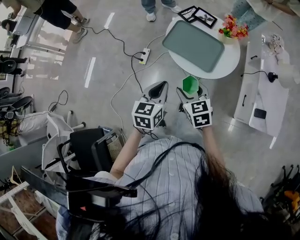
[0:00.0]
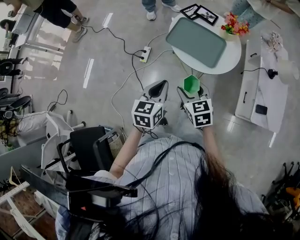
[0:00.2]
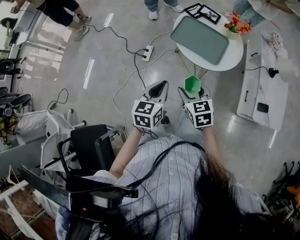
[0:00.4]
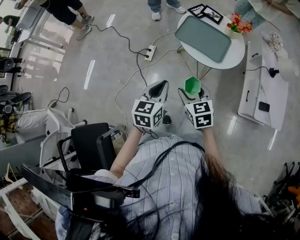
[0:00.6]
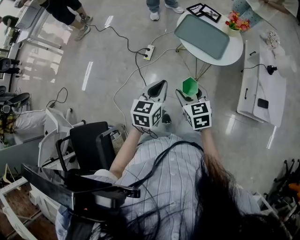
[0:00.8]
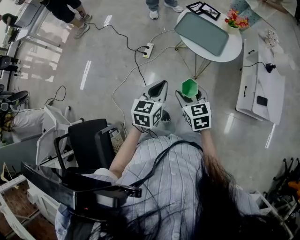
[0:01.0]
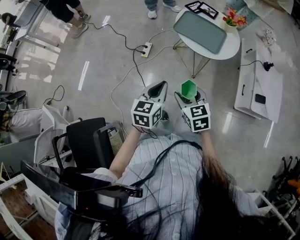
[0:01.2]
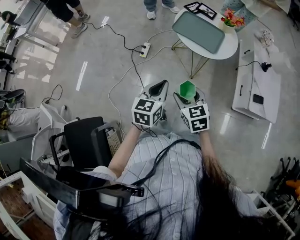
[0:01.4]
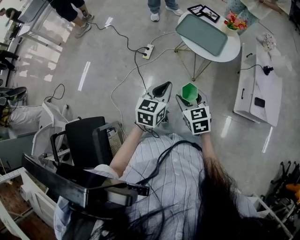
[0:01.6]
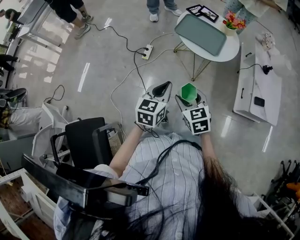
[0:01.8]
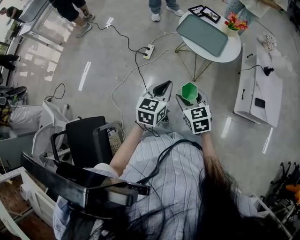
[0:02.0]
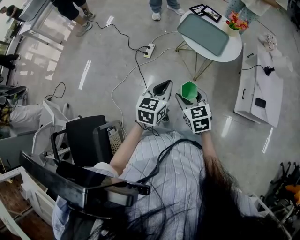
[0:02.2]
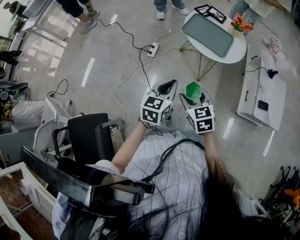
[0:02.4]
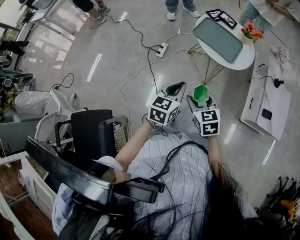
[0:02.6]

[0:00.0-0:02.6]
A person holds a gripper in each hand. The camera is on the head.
0:00.0 to 0:01.2: The two grippers go roughly 20 cm backward and to the left.
0:01.2 to 0:02.6: The grippers make only small movements.

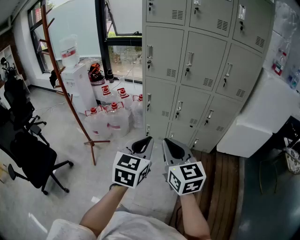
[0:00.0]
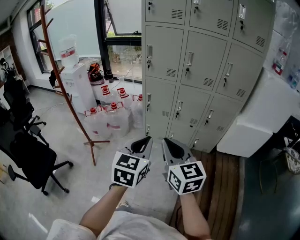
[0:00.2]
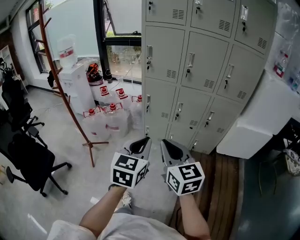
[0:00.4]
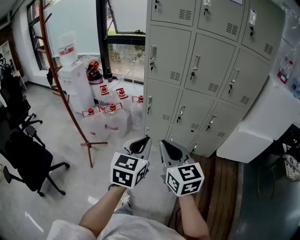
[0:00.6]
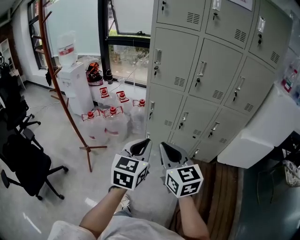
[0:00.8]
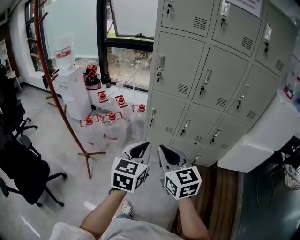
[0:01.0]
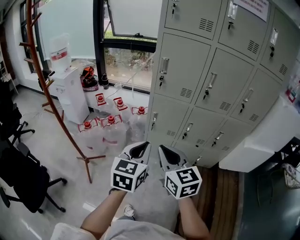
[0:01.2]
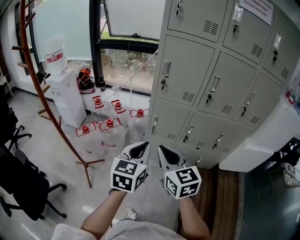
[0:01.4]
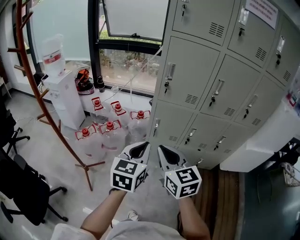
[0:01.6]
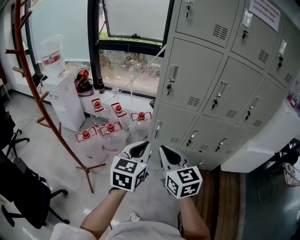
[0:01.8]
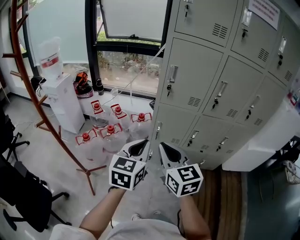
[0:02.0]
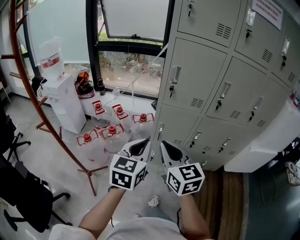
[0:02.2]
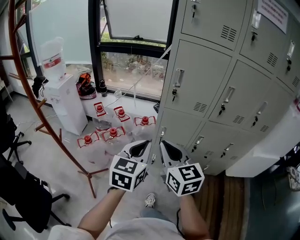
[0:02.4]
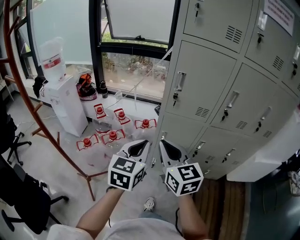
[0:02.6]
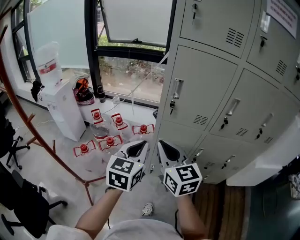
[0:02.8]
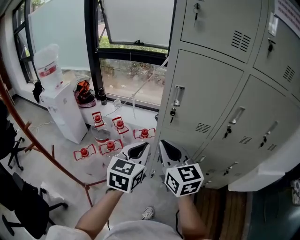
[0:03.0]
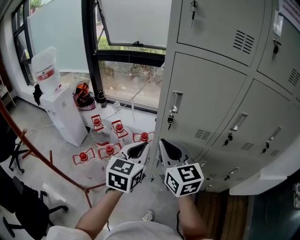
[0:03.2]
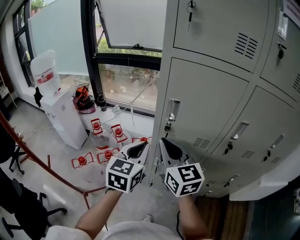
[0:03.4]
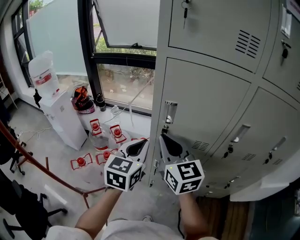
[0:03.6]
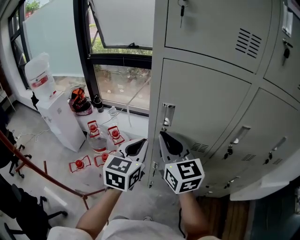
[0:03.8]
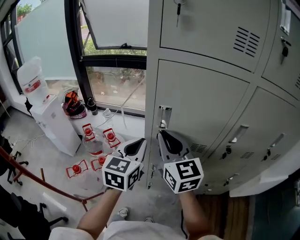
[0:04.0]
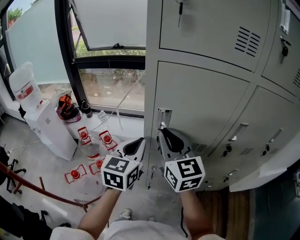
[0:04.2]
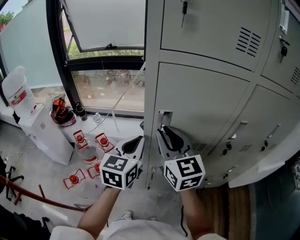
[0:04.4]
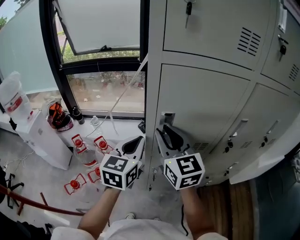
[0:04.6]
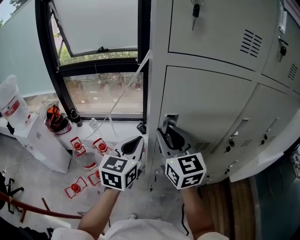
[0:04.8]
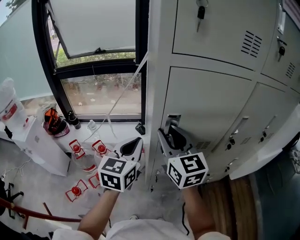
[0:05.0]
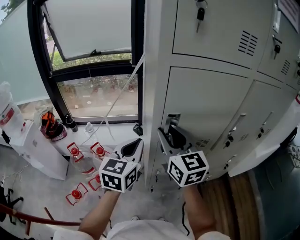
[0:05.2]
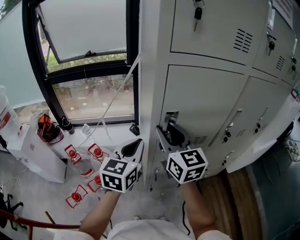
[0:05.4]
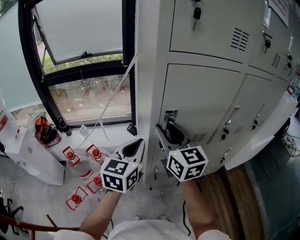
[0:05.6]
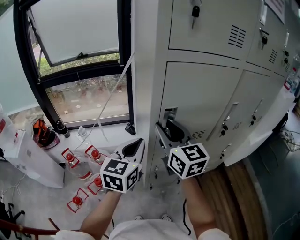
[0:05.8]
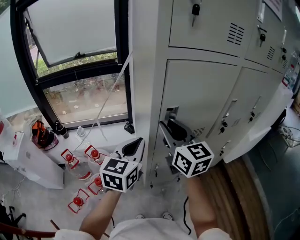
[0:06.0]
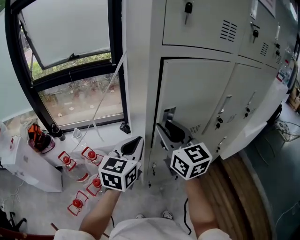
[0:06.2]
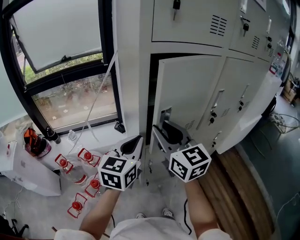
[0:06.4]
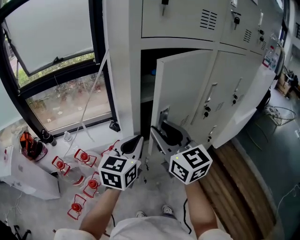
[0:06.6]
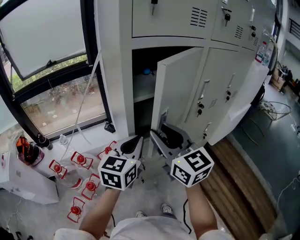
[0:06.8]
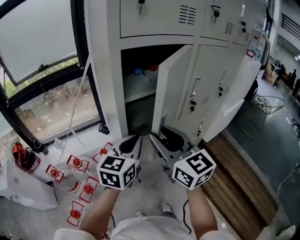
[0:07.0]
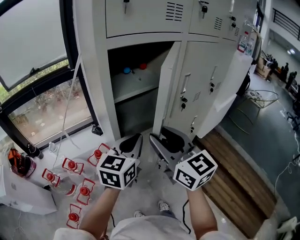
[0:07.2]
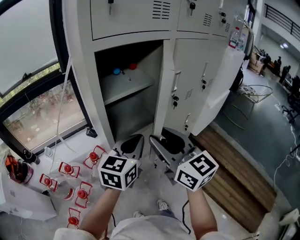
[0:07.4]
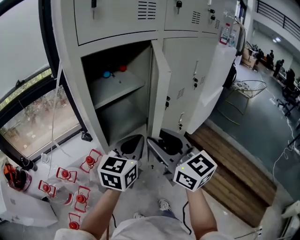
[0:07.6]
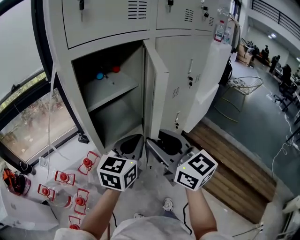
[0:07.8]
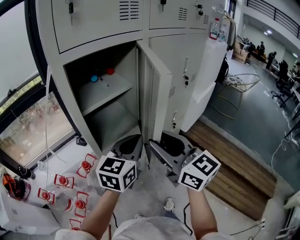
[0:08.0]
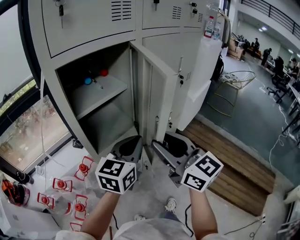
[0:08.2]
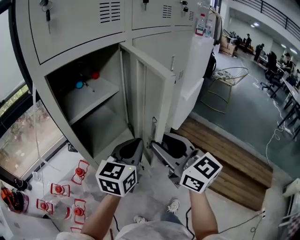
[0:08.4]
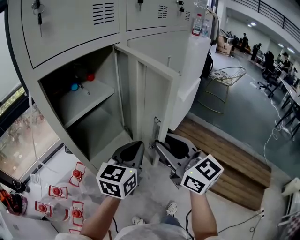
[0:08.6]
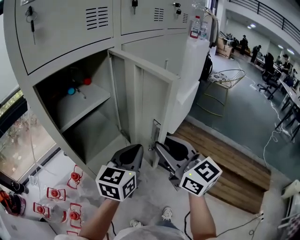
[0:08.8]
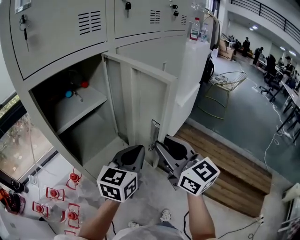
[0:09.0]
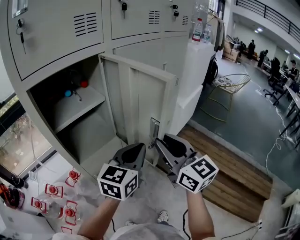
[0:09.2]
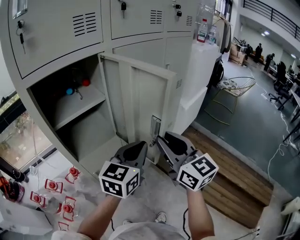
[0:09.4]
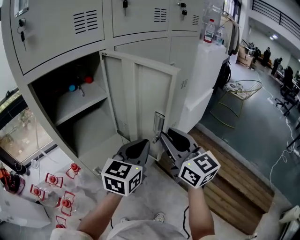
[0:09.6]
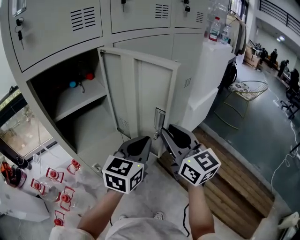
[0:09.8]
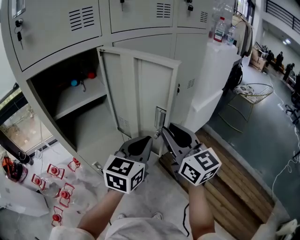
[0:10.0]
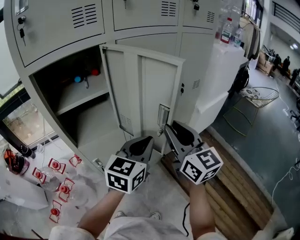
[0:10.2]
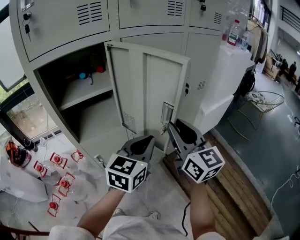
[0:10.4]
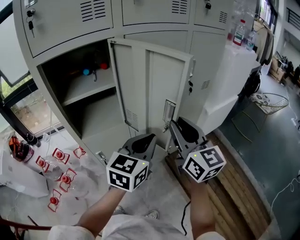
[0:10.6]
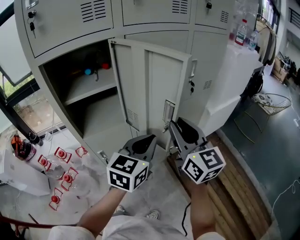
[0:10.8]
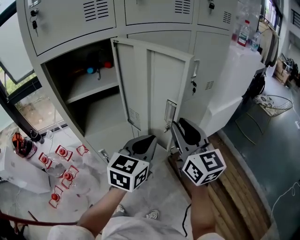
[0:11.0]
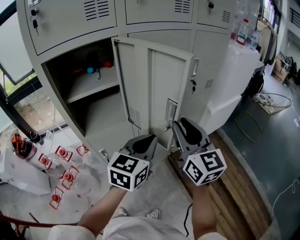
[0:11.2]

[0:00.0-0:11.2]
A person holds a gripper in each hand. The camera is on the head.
0:00.0 to 0:01.6: Both grippers travel together forward and to the left, roughly 35 cm.
0:01.6 to 0:03.2: The two grippers go some 25 cm forward.
0:03.2 to 0:04.8: The grippers both shift forward by some 15 cm.
0:04.8 to 0:06.4: The grippers stay close to where they were, moving slightly.
0:06.4 to 0:08.0: The left gripper travels to the right by some 20 cm, and turns by roughly 30 degrees. The right gripper goes roughly 20 cm to the right and backward.
0:08.0 to 0:09.6: The left gripper shifts some 15 cm to the right; the right gripper heads to the right and forward, covering about 20 cm.
0:09.6 to 0:11.2: The right gripper changes place by some 5 cm.

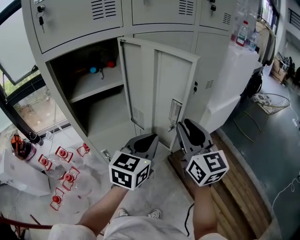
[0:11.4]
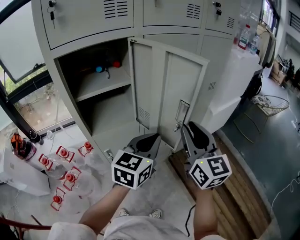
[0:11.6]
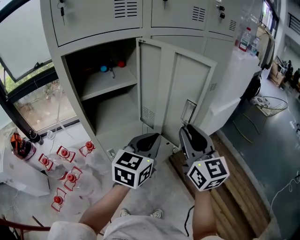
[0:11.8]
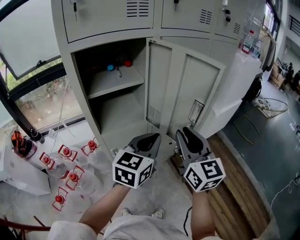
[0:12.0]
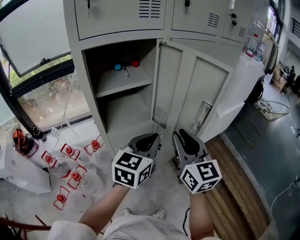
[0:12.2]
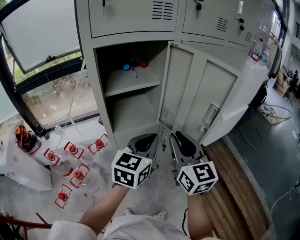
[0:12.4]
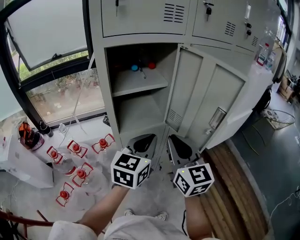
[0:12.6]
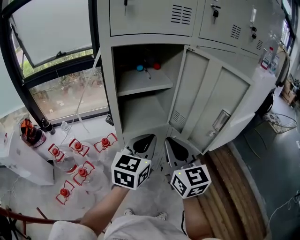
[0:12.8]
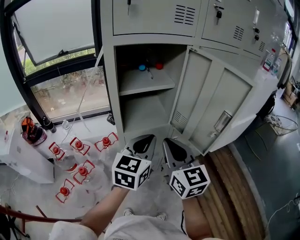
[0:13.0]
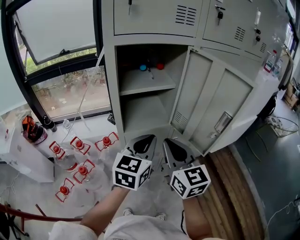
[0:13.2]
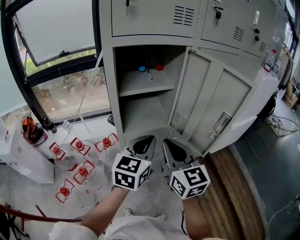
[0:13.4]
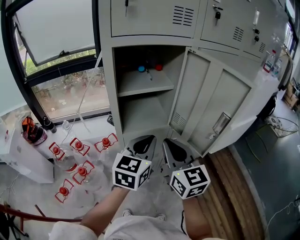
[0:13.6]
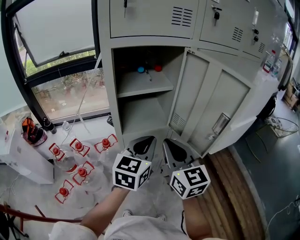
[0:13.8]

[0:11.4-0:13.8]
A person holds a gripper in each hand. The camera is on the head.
0:11.4 to 0:12.6: Both grippers travel together to the left, about 20 cm.
0:12.6 to 0:13.8: There are only small adjustments of the grippers.

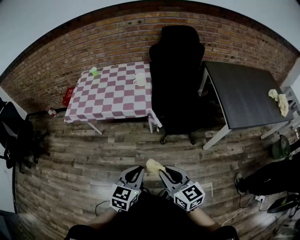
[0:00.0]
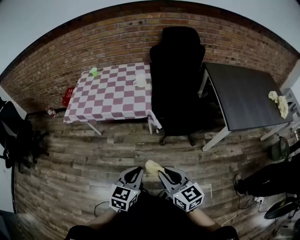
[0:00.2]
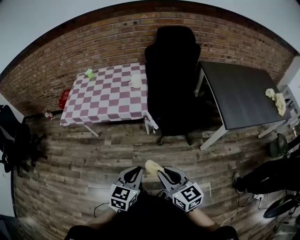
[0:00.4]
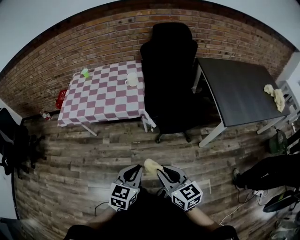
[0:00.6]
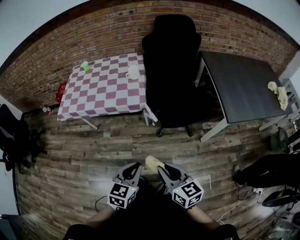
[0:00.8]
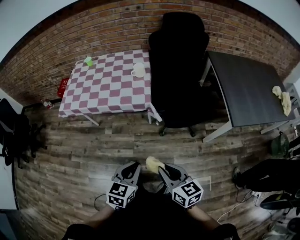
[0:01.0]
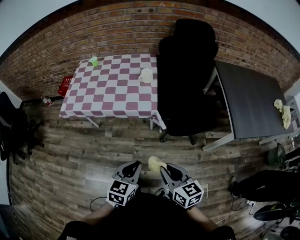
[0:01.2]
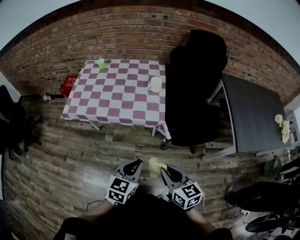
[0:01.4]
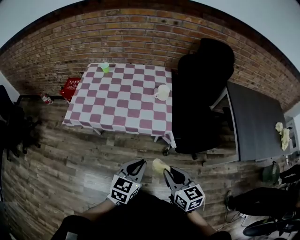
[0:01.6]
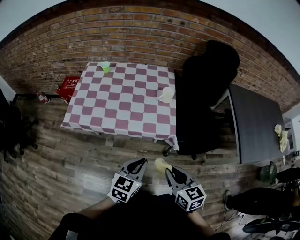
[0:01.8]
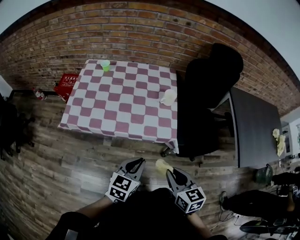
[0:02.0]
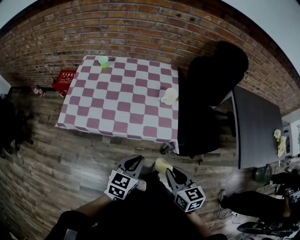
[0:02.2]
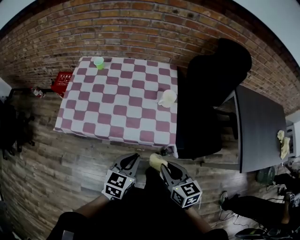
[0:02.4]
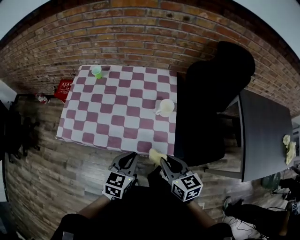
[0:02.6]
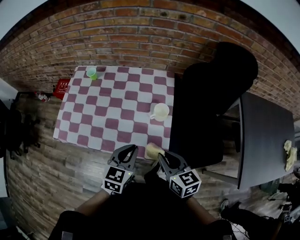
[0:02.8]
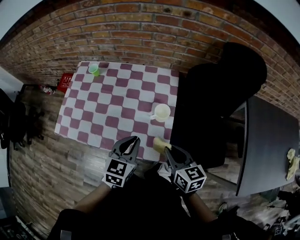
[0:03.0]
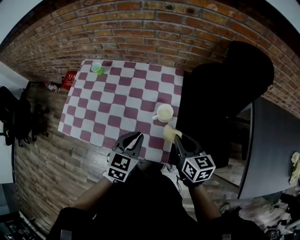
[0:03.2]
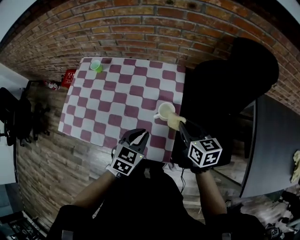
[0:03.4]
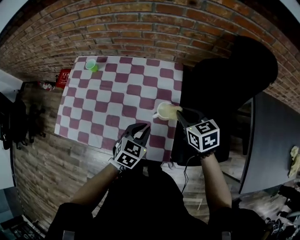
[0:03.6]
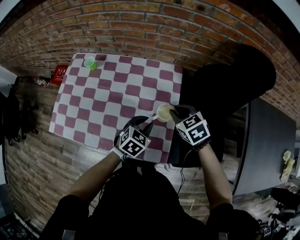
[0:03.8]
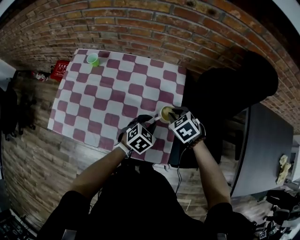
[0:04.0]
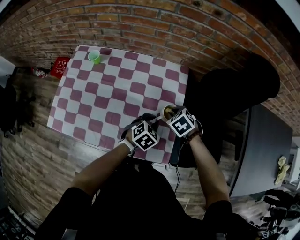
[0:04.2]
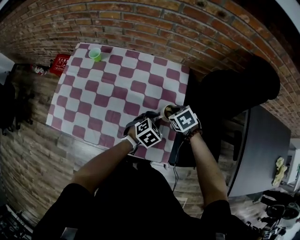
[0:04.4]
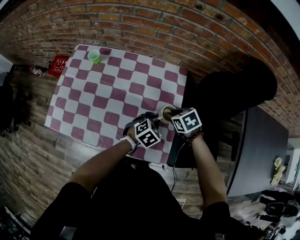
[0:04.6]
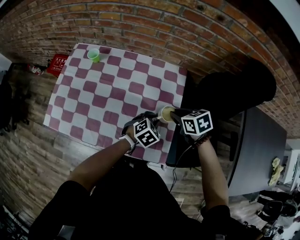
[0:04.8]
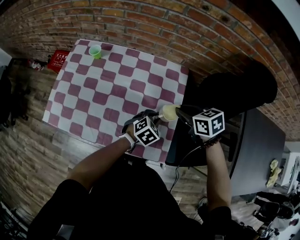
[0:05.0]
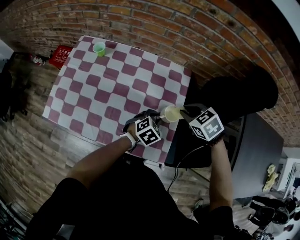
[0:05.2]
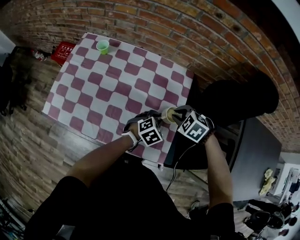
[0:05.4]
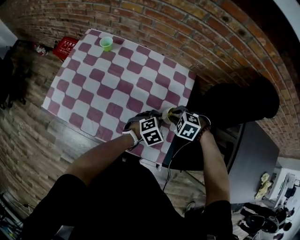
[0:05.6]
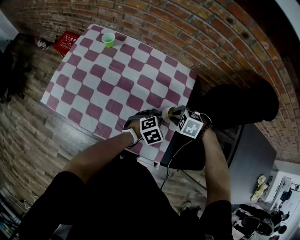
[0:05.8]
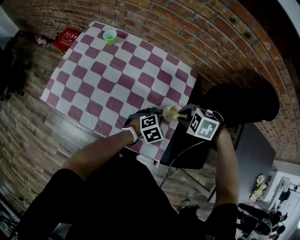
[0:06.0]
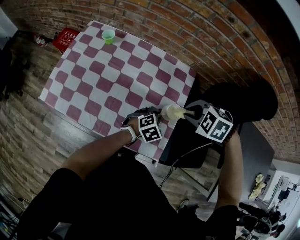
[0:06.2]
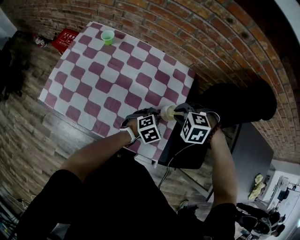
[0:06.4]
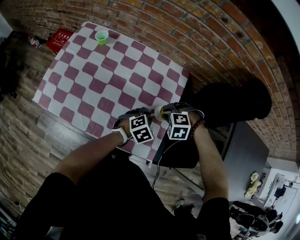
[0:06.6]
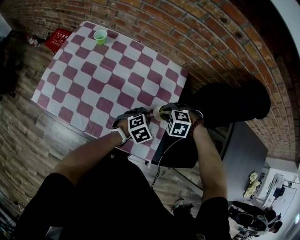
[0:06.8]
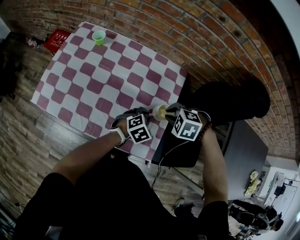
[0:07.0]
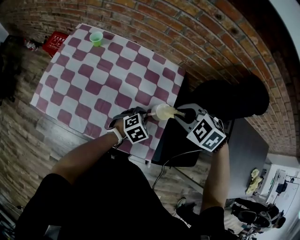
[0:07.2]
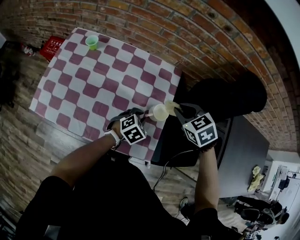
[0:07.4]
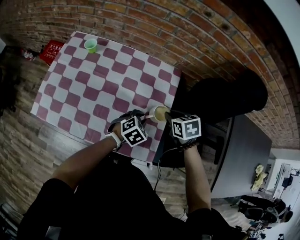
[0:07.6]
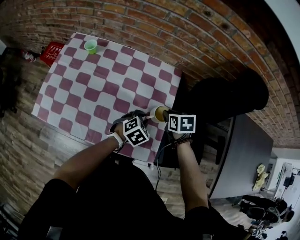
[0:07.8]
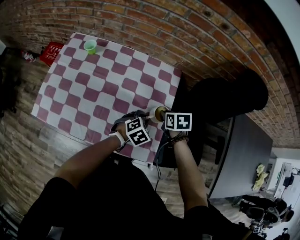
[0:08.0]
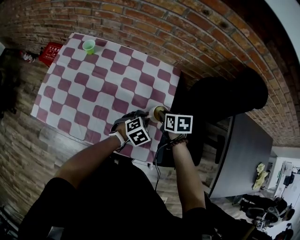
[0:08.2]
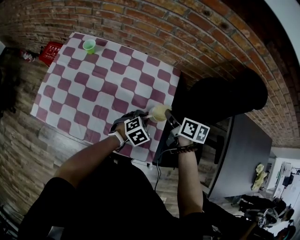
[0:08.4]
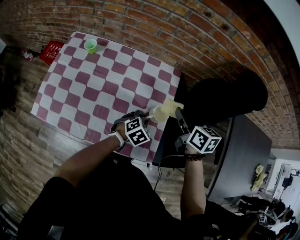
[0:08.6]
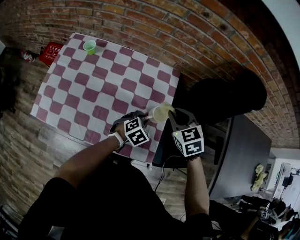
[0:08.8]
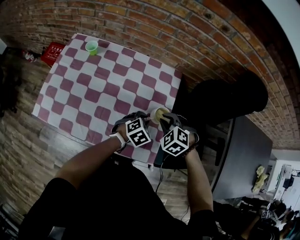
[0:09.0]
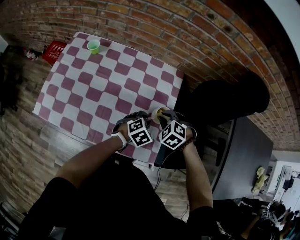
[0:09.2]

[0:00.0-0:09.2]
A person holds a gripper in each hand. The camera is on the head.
0:00.0 to 0:01.6: Both grippers move forward and to the left, about 30 cm.
0:01.6 to 0:03.0: The grippers both shift forward by about 40 cm.
0:03.0 to 0:04.6: The right gripper is displaced forward and downward by some 25 cm, and tilts its fingers roughly 40 degrees downward; the left gripper shifts approximately 20 cm downward and forward, and swivels about 30 degrees.
0:04.6 to 0:06.2: The right gripper swings up and down, roughly 15 cm each way, with 2 reversals, and twists roughly 50 degrees counterclockwise, seen from behind.
0:06.2 to 0:07.6: The right gripper goes up and down, about 15 cm each way, reversing 2 times, and rolls clockwise, seen from behind, by about 60 degrees.
0:07.6 to 0:09.2: The right gripper swings up and down, roughly 15 cm each way, with 2 reversals, and twists roughly 50 degrees counterclockwise, seen from behind.
